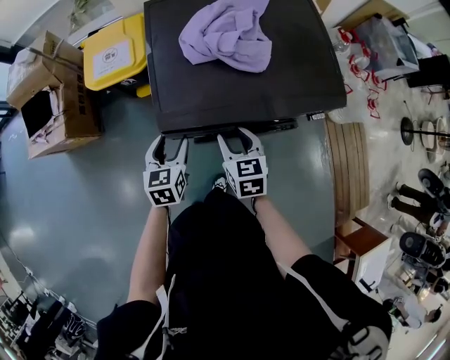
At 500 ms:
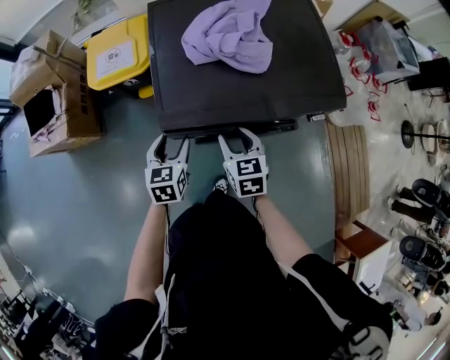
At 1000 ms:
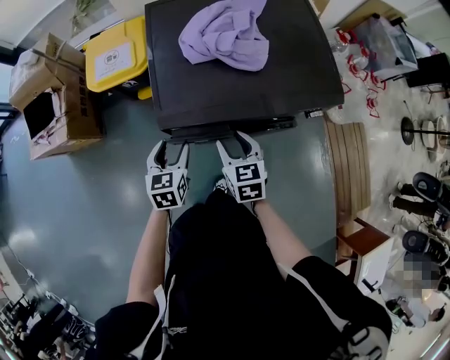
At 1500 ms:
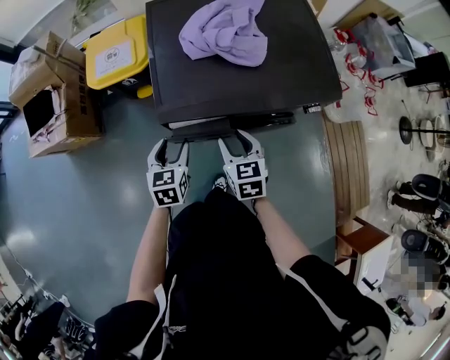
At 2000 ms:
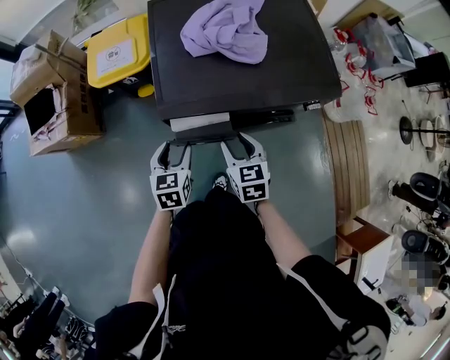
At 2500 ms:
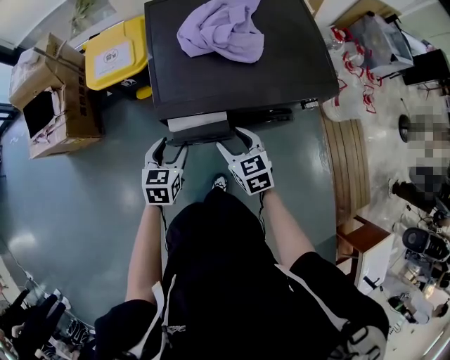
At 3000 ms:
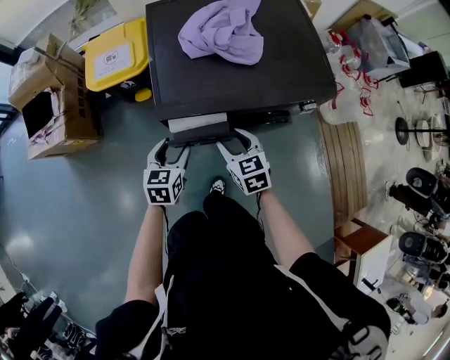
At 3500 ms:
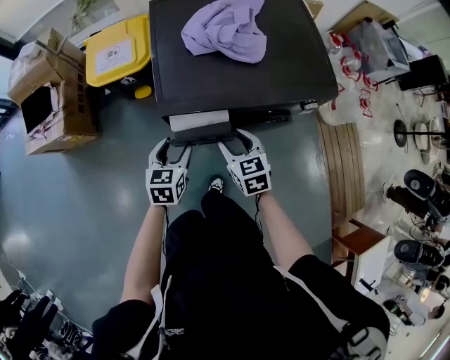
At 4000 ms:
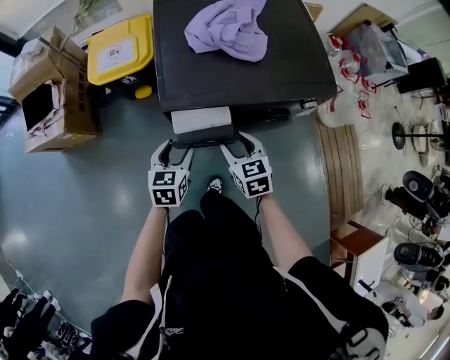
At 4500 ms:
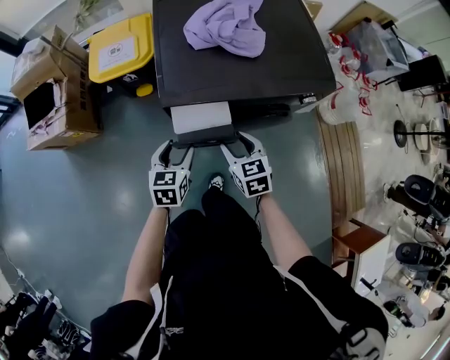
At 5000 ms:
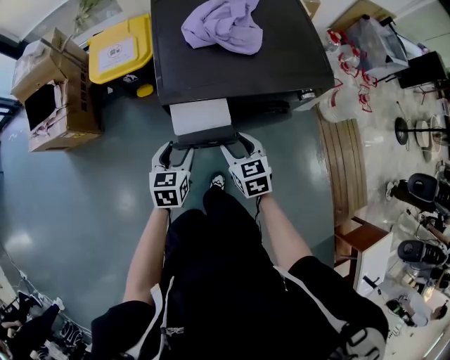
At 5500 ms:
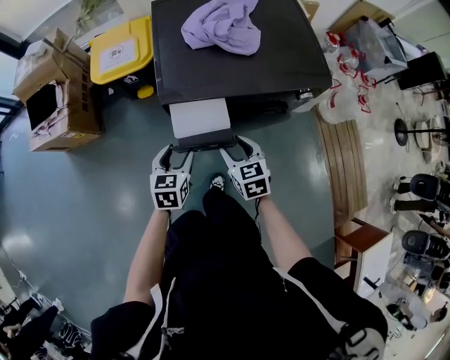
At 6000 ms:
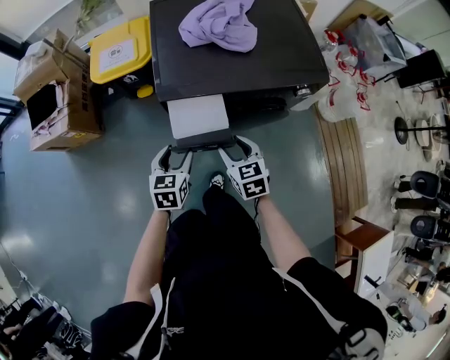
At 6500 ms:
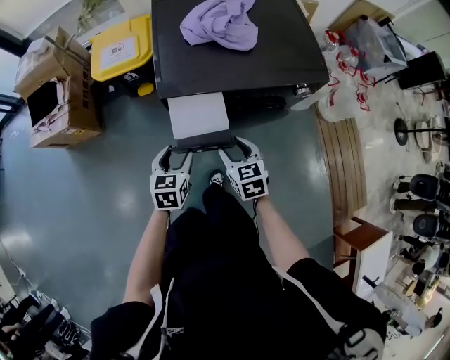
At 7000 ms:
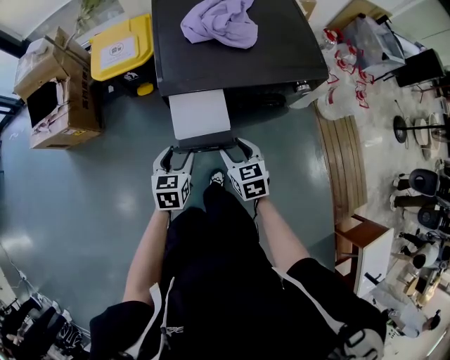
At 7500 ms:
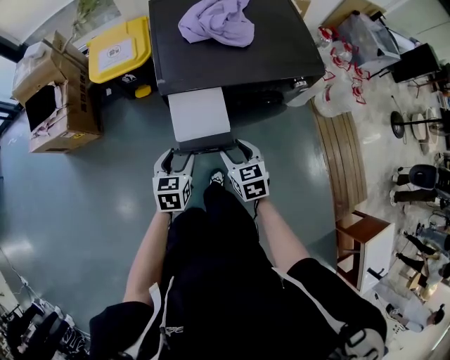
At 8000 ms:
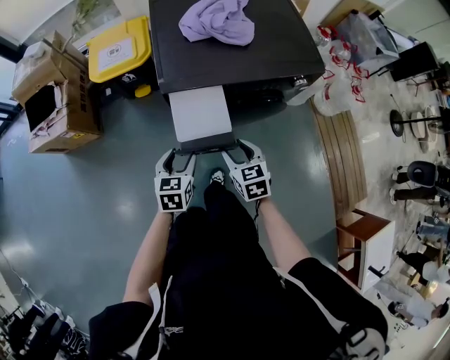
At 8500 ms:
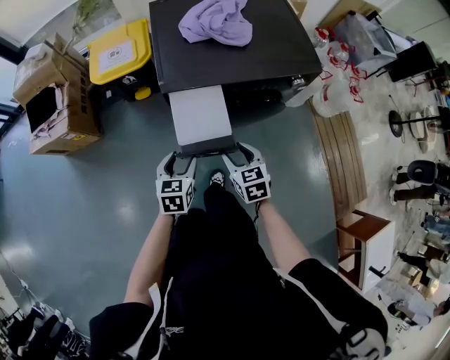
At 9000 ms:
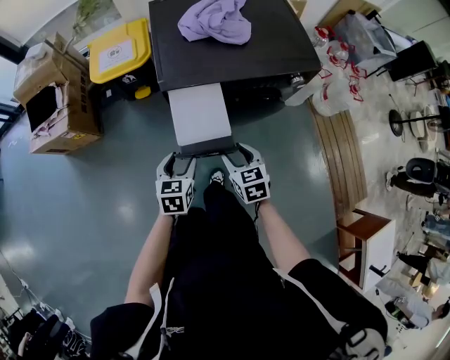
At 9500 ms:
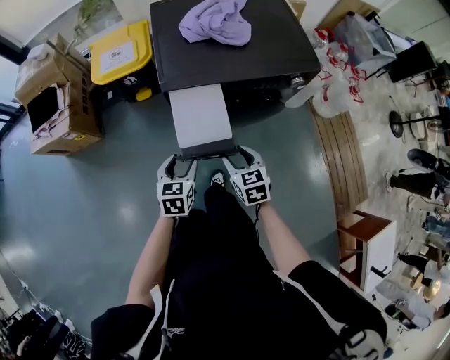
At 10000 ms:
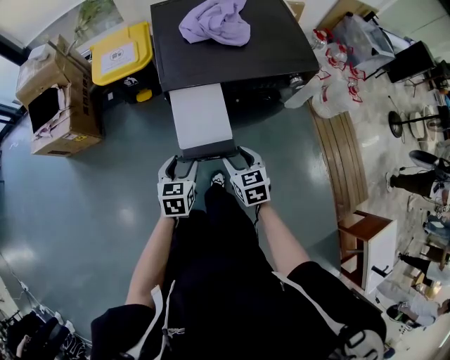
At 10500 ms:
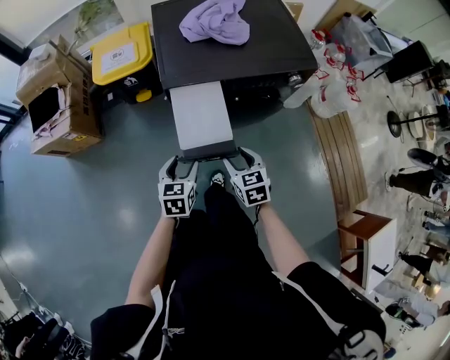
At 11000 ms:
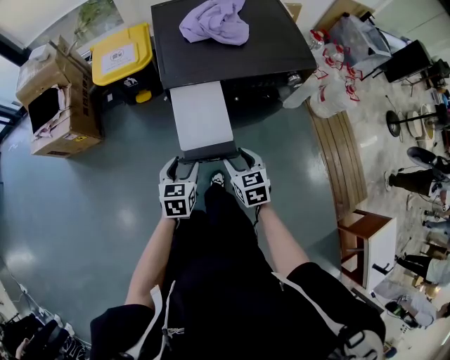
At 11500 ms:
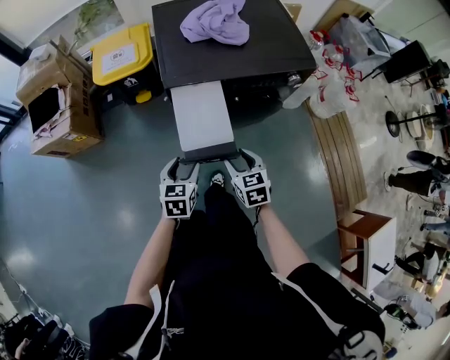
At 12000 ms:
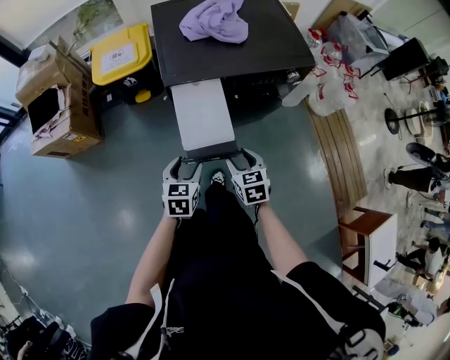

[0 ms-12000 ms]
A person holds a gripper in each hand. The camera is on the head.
0 ms to 2000 ms: Both grippers travel together backward, roughly 5 cm.
2000 ms to 4000 ms: The grippers stay close to where they were, moving slightly.
4000 ms to 6000 ms: Both grippers travel together backward, about 5 cm.
6000 ms to 8000 ms: The grippers make only small movements.
8000 ms to 10000 ms: There are only small adjustments of the grippers.
10000 ms to 12000 ms: The grippers move only a little.

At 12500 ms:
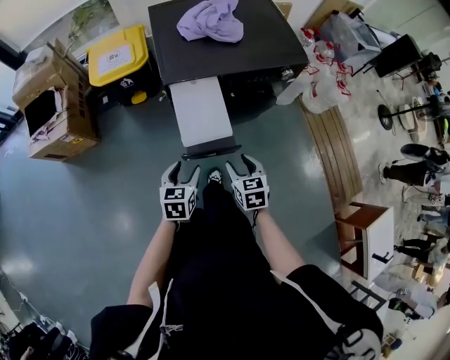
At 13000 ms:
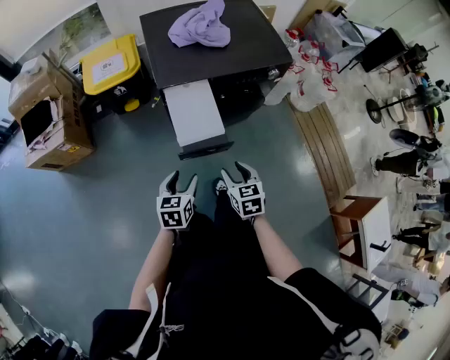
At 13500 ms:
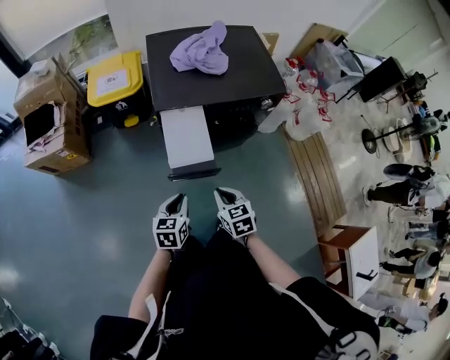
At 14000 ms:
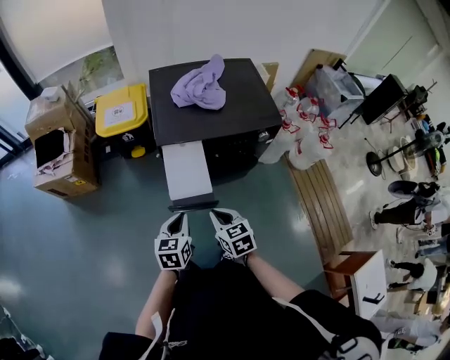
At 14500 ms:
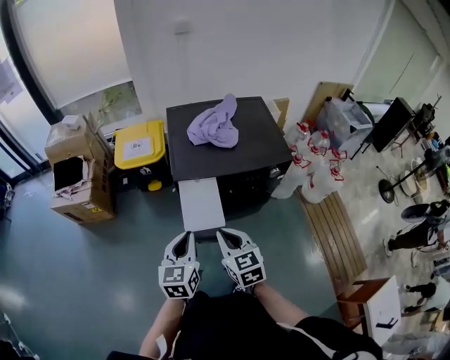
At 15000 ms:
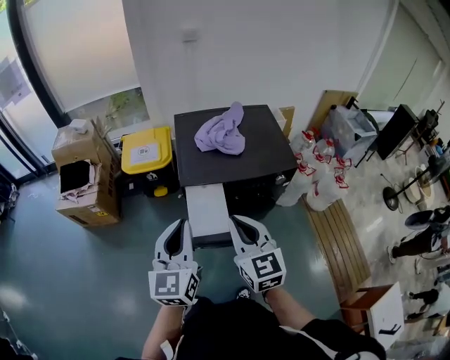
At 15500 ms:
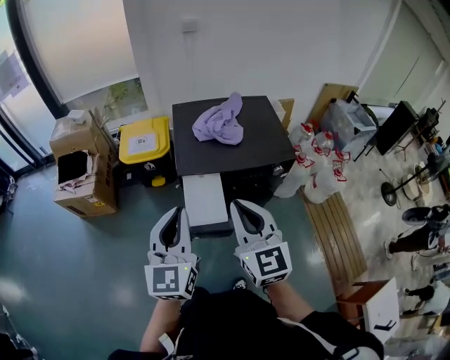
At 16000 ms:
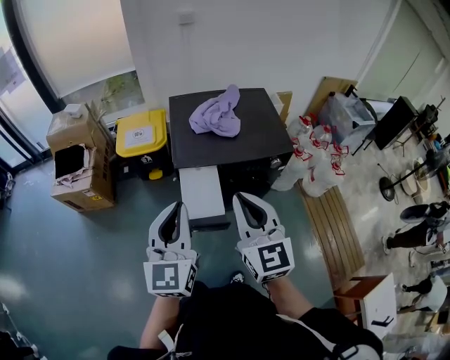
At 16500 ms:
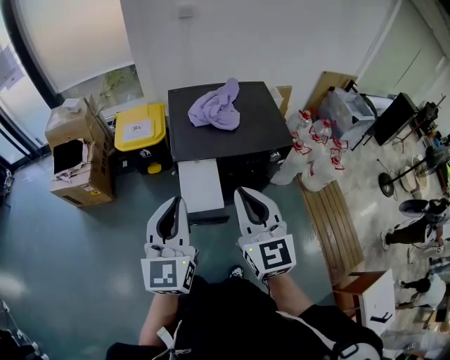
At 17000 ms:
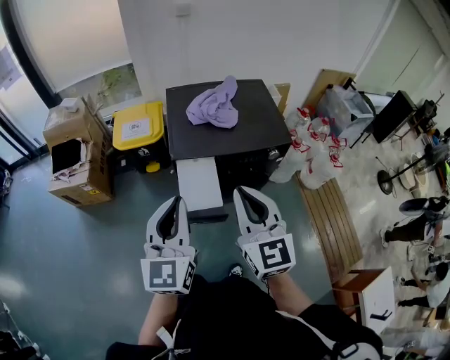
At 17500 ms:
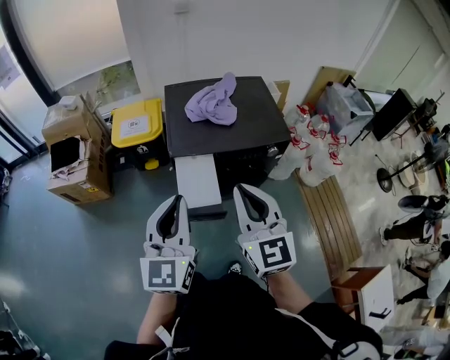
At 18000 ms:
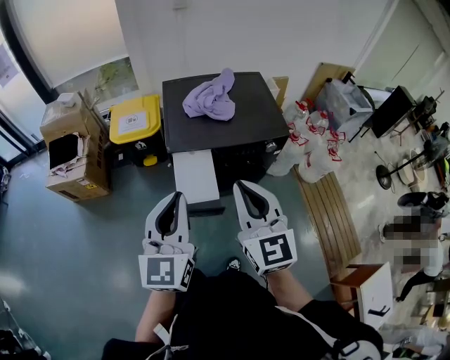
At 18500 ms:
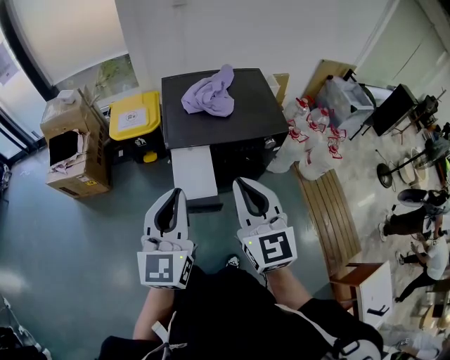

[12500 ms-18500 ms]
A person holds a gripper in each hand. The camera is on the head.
12500 ms to 14500 ms: Both grippers travel together upward, some 20 cm. The right gripper changes its angle by some 20 degrees, and closes its fingers; the left gripper turns by approximately 20 degrees, and closes up.
14500 ms to 16500 ms: The grippers both shift upward by about 20 cm. The right gripper rotates some 30 degrees; the left gripper changes its angle by some 20 degrees.
16500 ms to 18500 ms: The grippers move only a little.

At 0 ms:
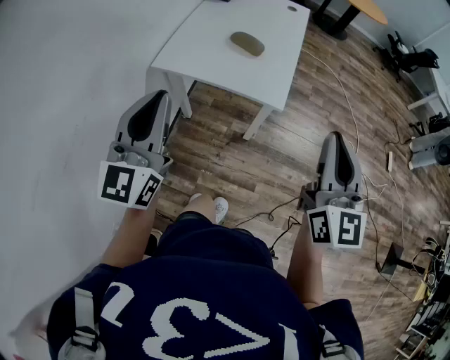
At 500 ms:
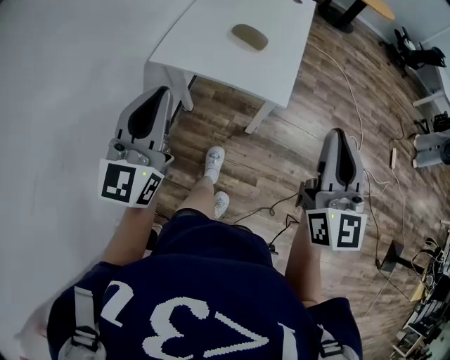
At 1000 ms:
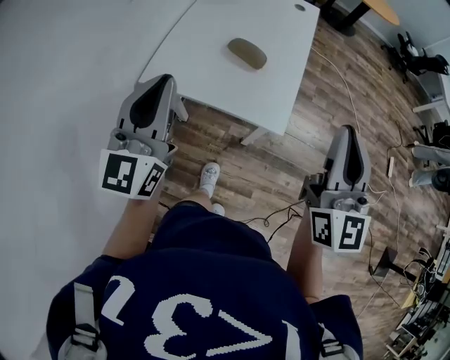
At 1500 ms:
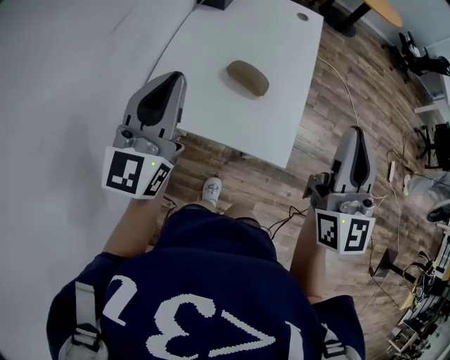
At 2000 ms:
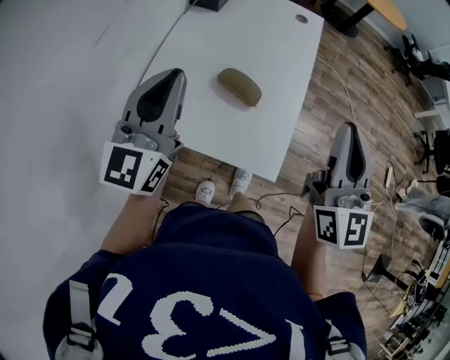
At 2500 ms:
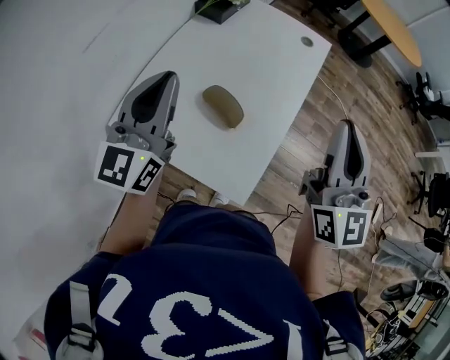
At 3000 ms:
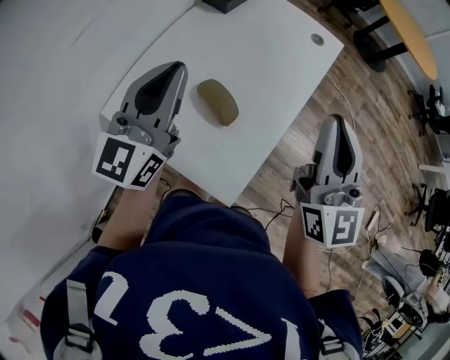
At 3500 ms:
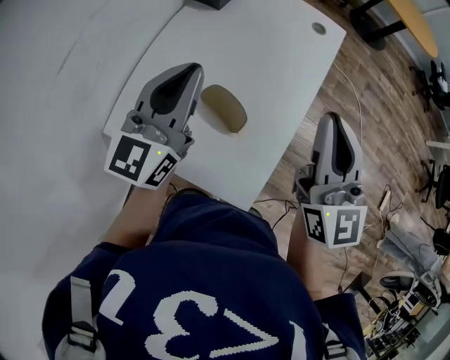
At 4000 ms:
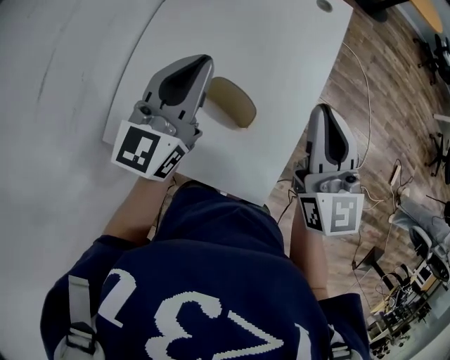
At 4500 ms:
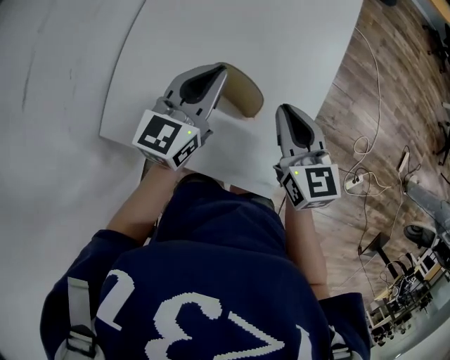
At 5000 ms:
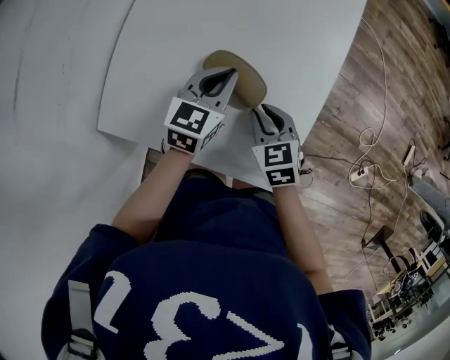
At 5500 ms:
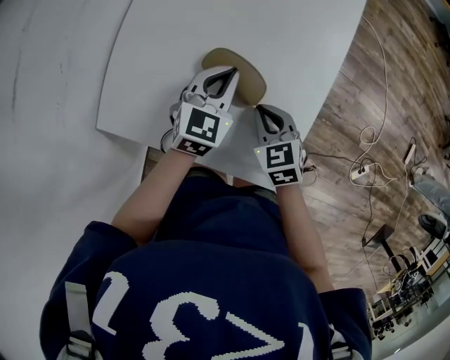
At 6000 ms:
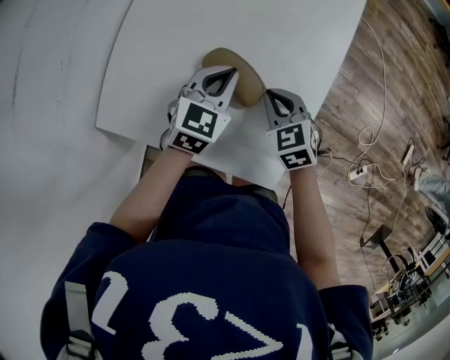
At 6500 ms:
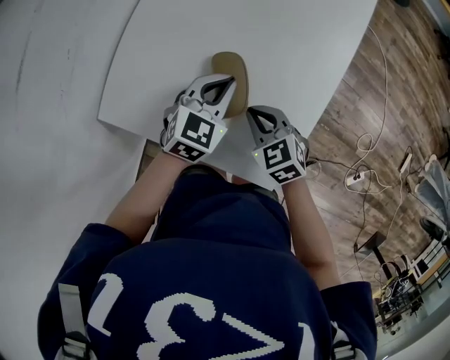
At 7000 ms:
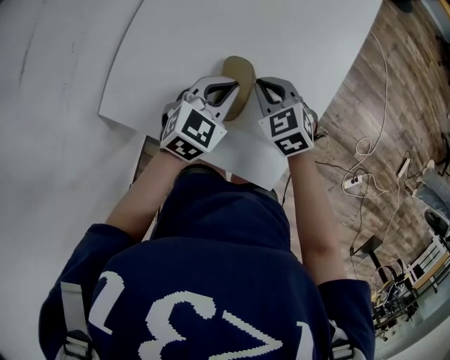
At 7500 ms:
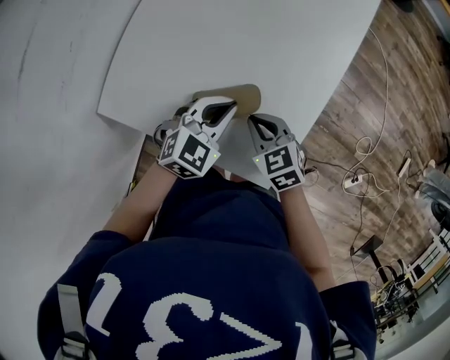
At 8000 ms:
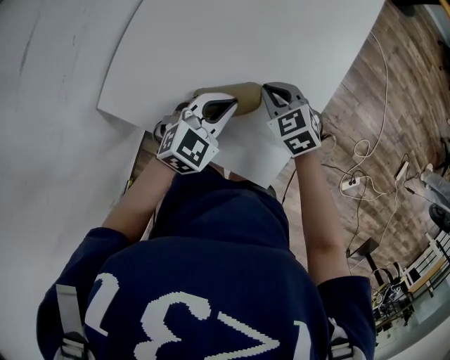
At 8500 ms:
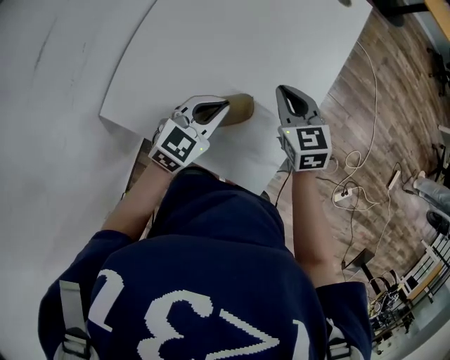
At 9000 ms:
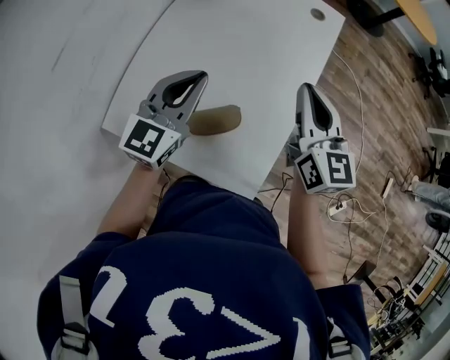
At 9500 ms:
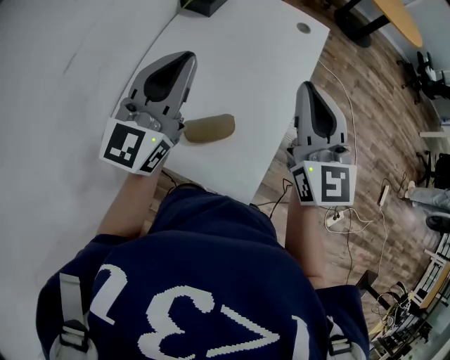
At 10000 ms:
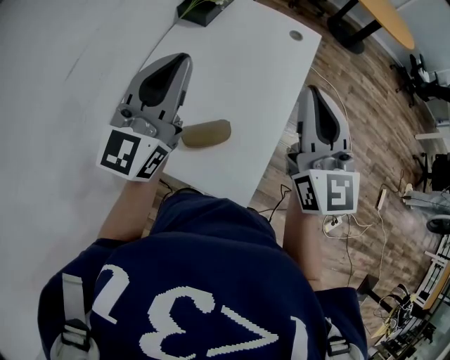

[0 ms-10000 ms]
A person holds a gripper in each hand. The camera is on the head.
0 ms to 2000 ms: Both grippers travel together forward, about 35 cm.
2000 ms to 4000 ms: Both grippers travel together forward and downward, some 20 cm.
4000 ms to 6000 ms: The grippers both shift downward by approximately 25 cm. The right gripper angles its fingers downward, by approximately 40 degrees. Meanwhile the left gripper tips its fingers downward by approximately 30 degrees.
6000 ms to 8000 ms: The left gripper moves backward, approximately 10 cm, while the right gripper swings forward and backward, some 10 cm each way, with 3 reversals.
8000 ms to 10000 ms: The two grippers go roughly 35 cm upward. The right gripper angles its fingers upward, by approximately 60 degrees; the left gripper angles its fingers upward, by about 50 degrees.
